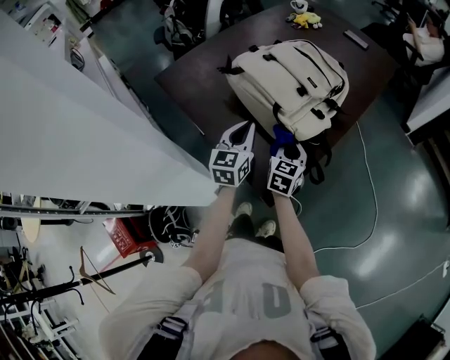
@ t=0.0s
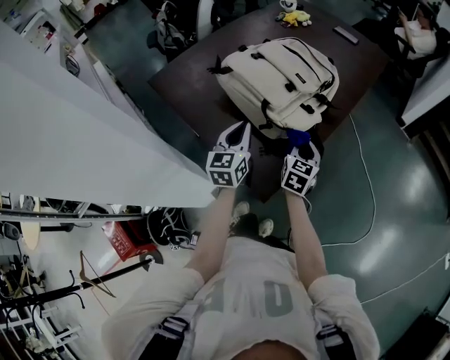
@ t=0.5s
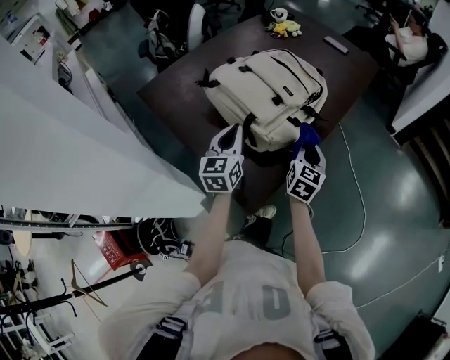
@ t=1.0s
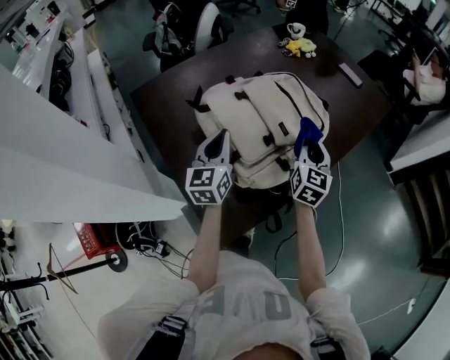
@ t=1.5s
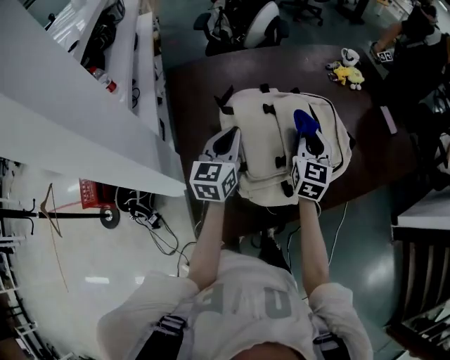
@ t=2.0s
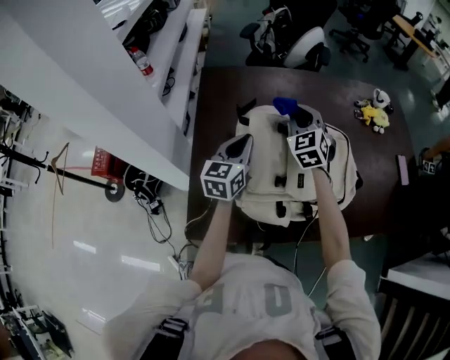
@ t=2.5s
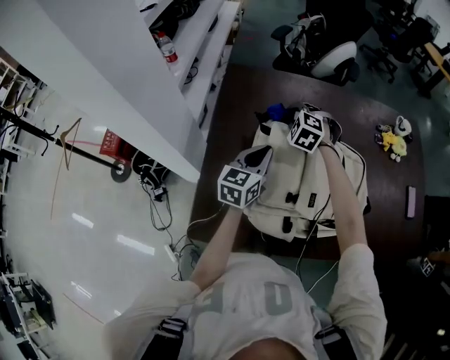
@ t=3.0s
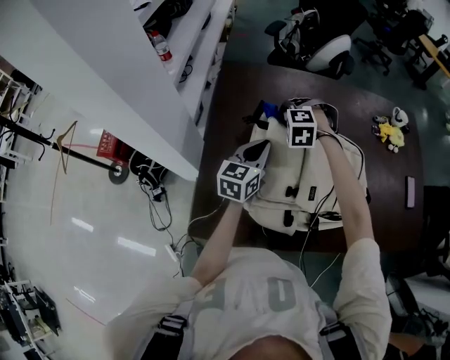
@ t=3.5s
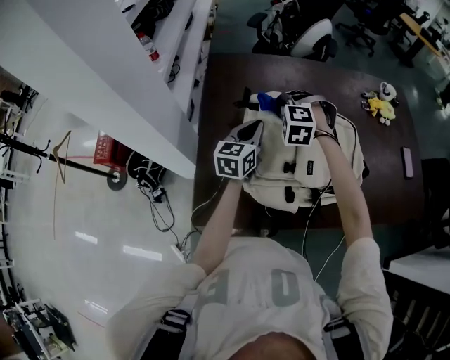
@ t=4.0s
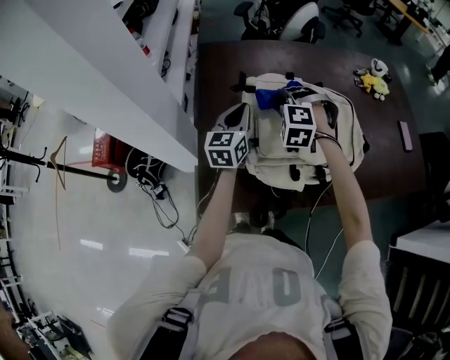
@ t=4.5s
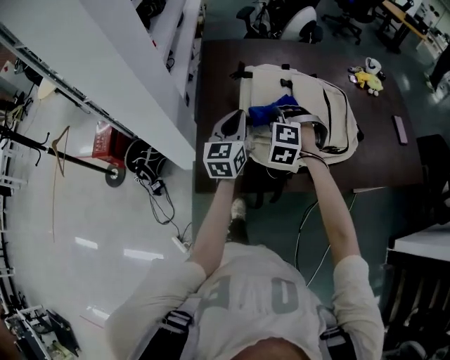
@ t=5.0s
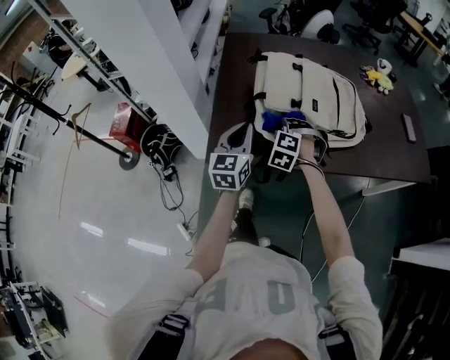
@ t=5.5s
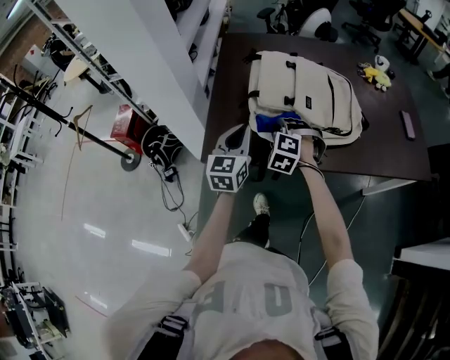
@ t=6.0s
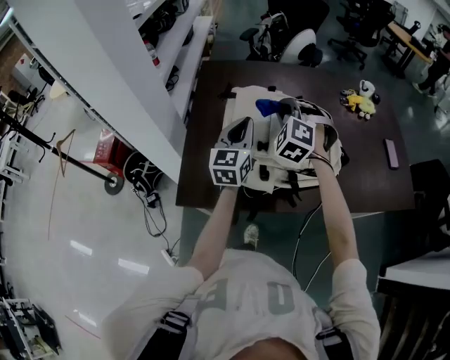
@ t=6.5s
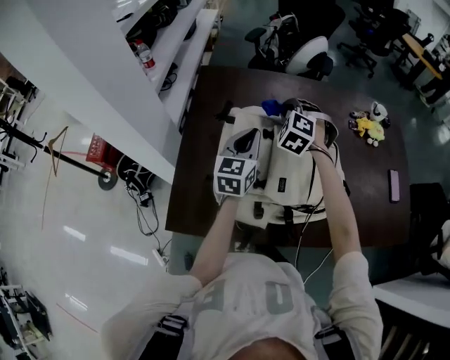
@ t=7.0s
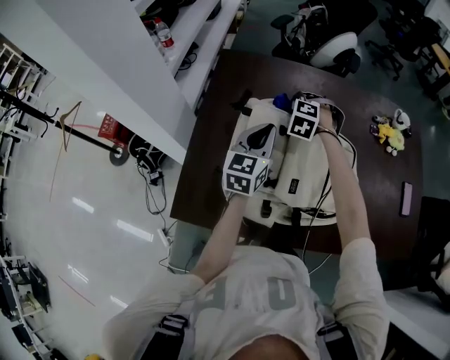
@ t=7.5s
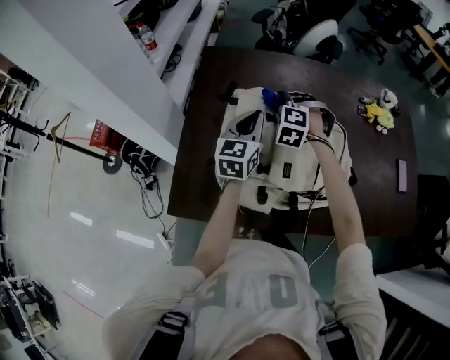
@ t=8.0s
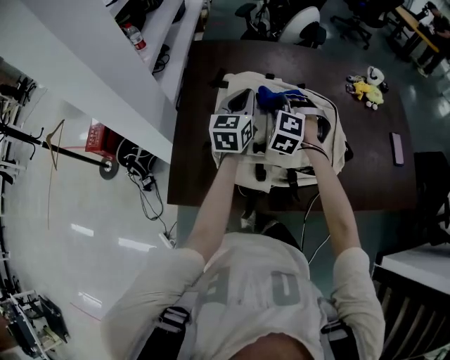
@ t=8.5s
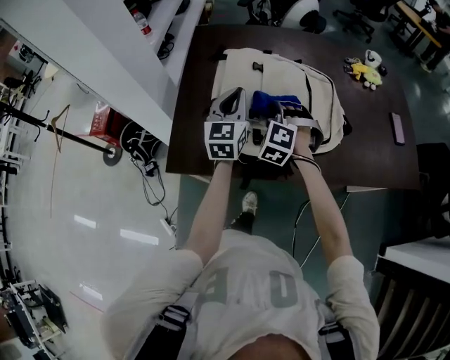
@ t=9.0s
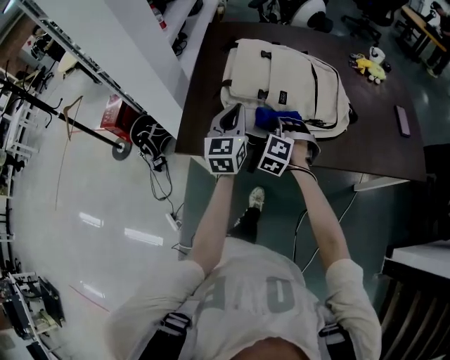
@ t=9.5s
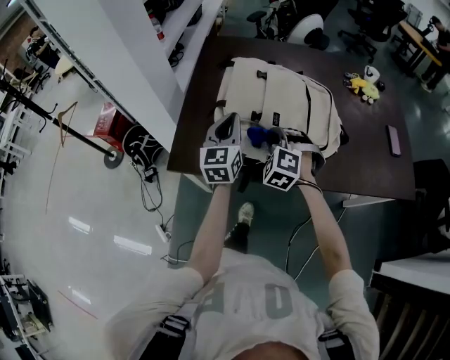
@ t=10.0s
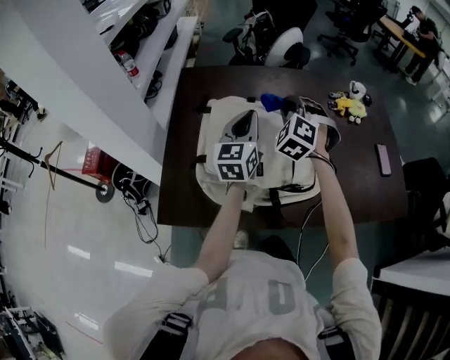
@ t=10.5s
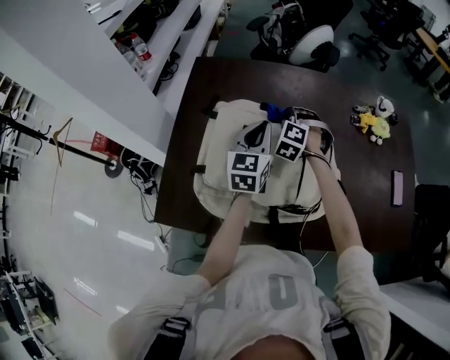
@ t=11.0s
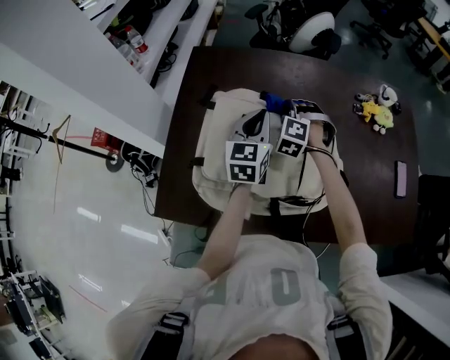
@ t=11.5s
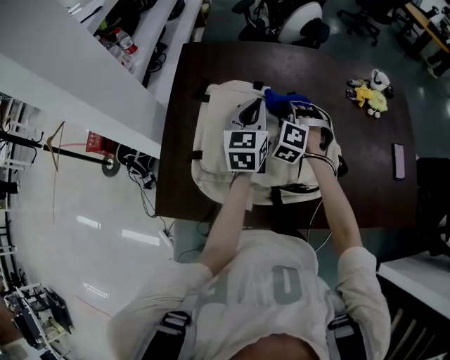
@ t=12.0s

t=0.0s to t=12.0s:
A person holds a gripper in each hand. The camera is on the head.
t=0.0s to t=2.0s: The right gripper changes place by roughly 30 cm, and changes its angle by about 40 degrees. The left gripper changes place by roughly 15 cm, and rotates approximately 30 degrees.
t=2.0s to t=4.0s: The right gripper changes place by approximately 20 cm, and rotates around the line of its fingers by about 90 degrees, counterclockwise from behind.
t=4.0s to t=6.0s: The grippers both shift backward by about 25 cm.
t=6.0s to t=8.0s: Both grippers travel together forward, approximately 30 cm.
t=8.0s to t=10.0s: Both grippers move backward, roughly 25 cm.
t=10.0s to t=12.0s: The right gripper moves forward, roughly 25 cm. Meanwhile the left gripper moves forward and to the right, approximately 25 cm.

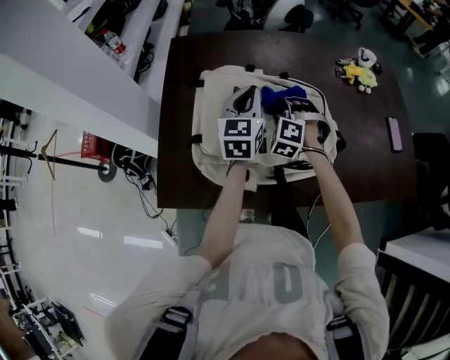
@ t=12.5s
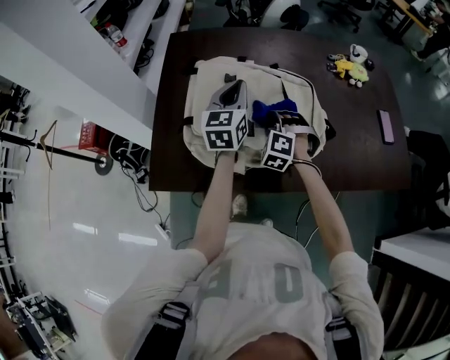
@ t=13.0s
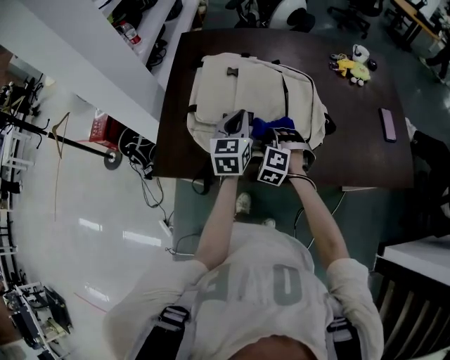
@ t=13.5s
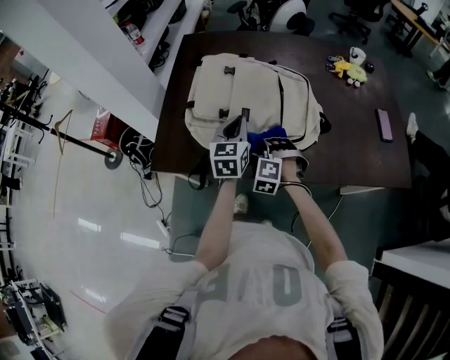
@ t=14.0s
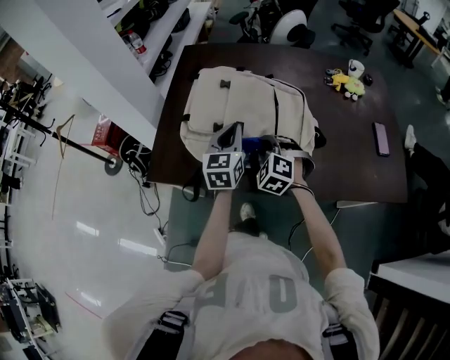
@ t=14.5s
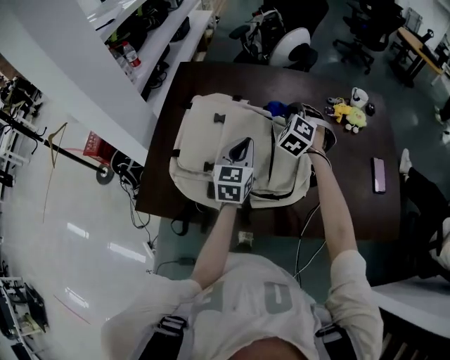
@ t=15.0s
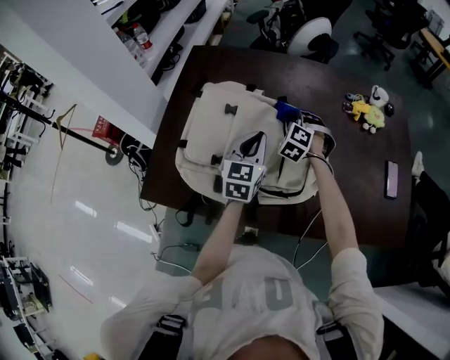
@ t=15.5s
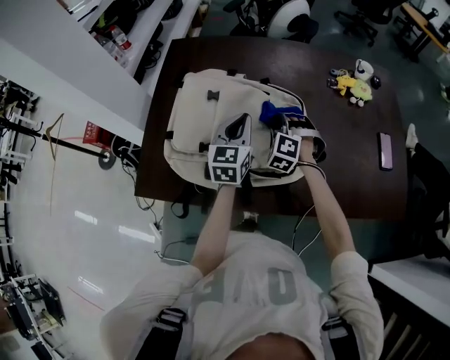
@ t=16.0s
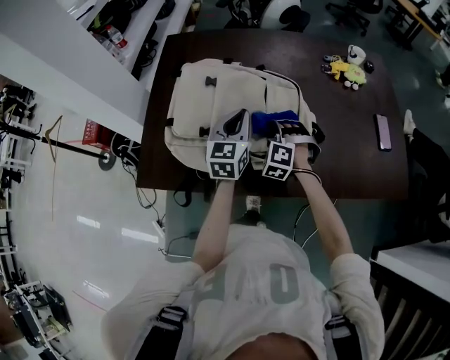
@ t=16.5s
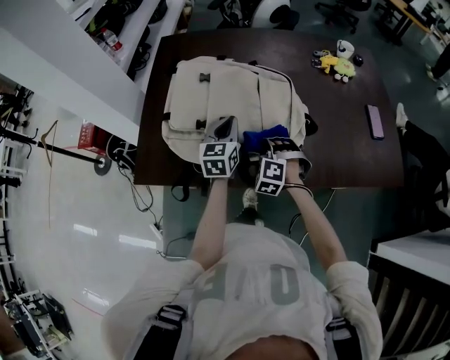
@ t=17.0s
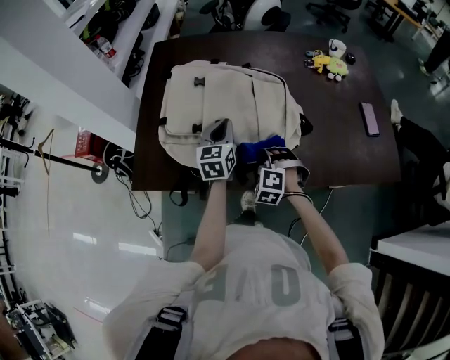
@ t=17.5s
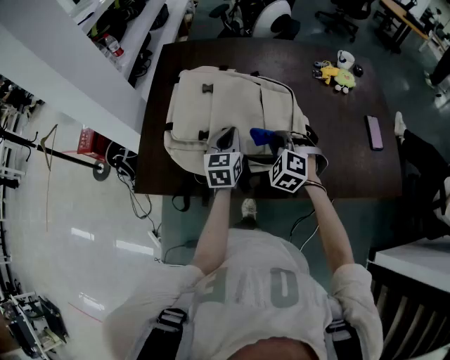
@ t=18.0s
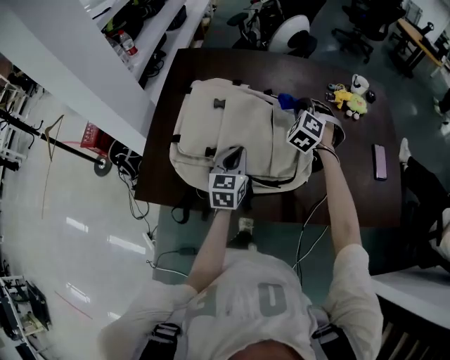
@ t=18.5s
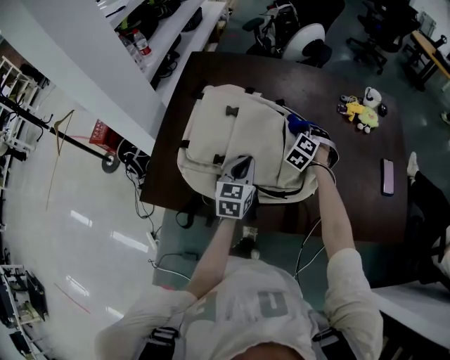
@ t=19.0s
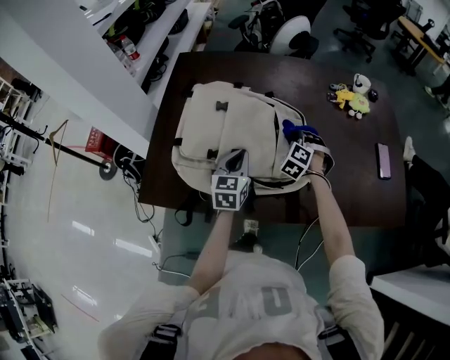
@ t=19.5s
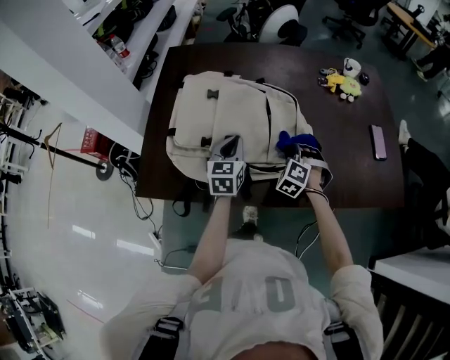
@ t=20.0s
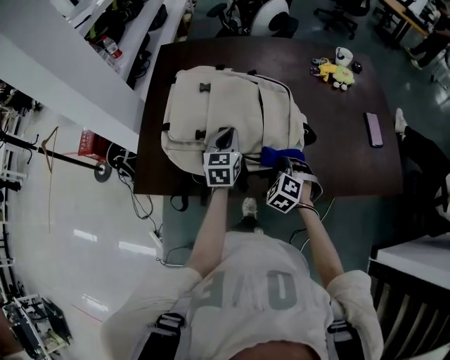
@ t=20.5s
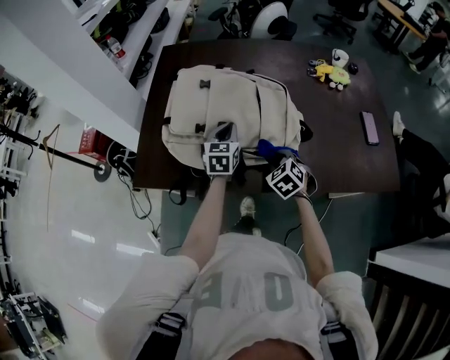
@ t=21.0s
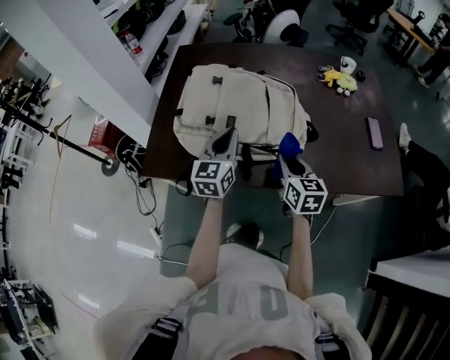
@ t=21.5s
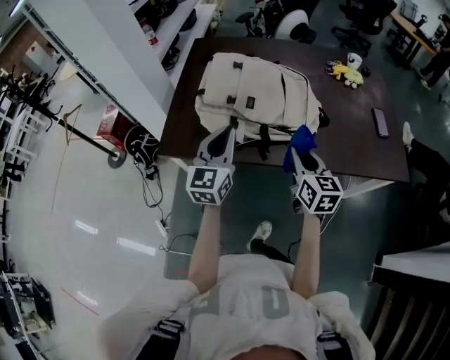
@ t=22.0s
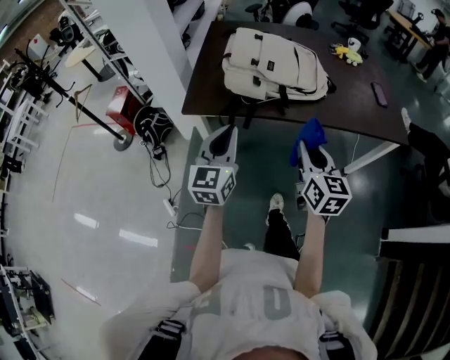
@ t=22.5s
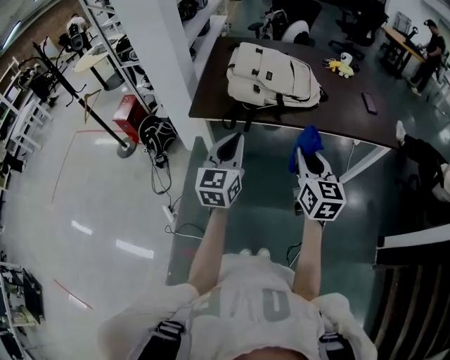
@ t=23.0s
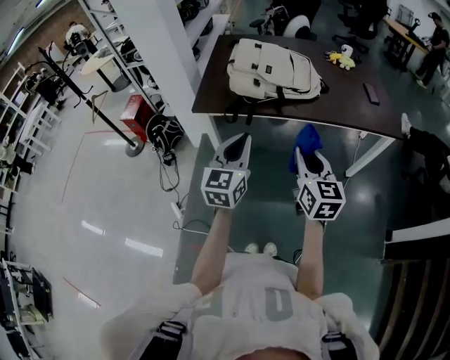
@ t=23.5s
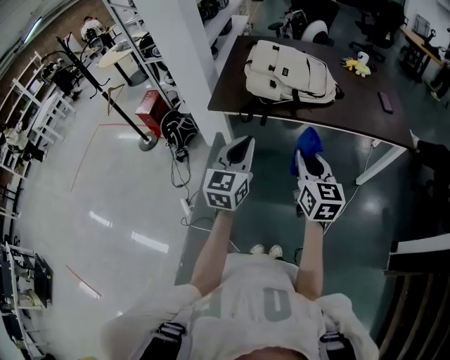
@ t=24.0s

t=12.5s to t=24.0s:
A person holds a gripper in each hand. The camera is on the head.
t=12.5s to t=14.5s: The grippers both shift backward by about 15 cm.
t=14.5s to t=16.5s: The left gripper travels forward and to the right by some 10 cm. Meanwhile the right gripper shifts some 5 cm to the right and downward, and travels forward and back again, roughly 25 cm each way.
t=16.5s to t=18.5s: The left gripper goes roughly 5 cm downward. The right gripper travels forward, upward and to the right by about 20 cm.
t=18.5s to t=20.0s: The right gripper goes some 20 cm backward and downward.
t=20.0s to t=22.0s: The two grippers go approximately 25 cm backward and upward. The left gripper swivels roughly 20 degrees; the right gripper rotates around the line of its fingers by roughly 70 degrees, clockwise from behind.
t=22.0s to t=24.0s: The two grippers go approximately 30 cm backward.

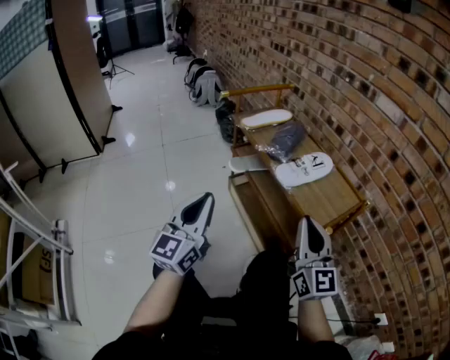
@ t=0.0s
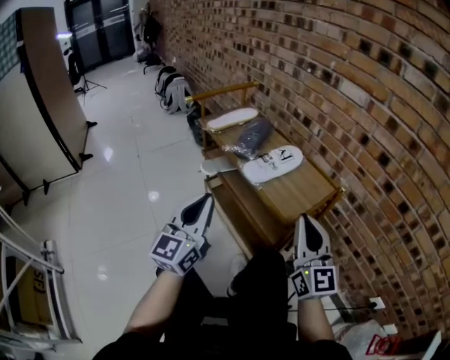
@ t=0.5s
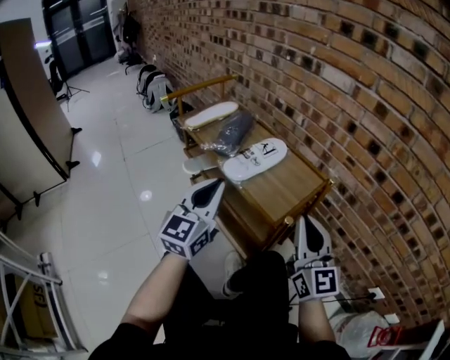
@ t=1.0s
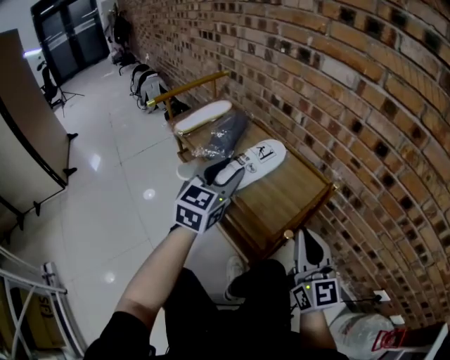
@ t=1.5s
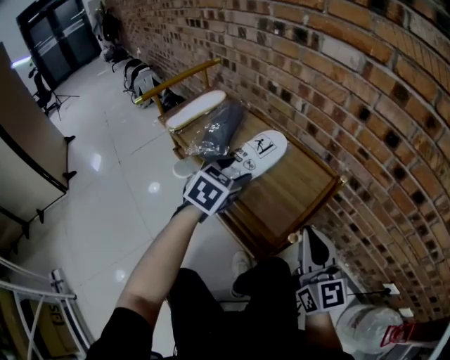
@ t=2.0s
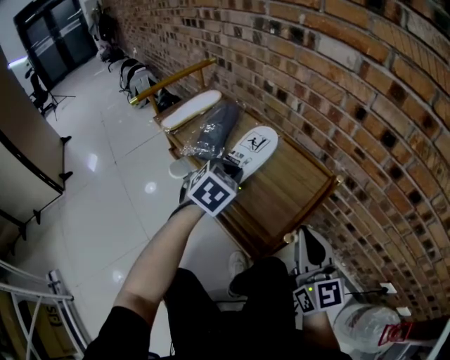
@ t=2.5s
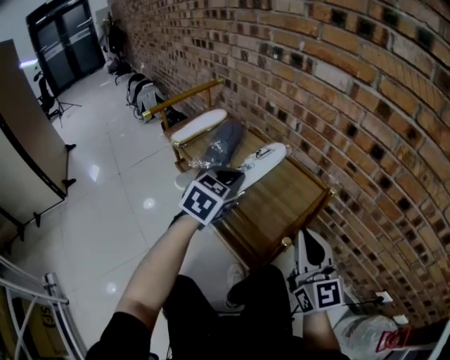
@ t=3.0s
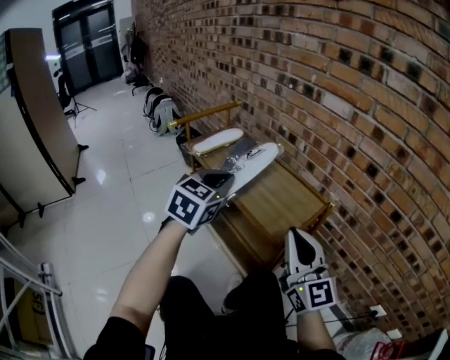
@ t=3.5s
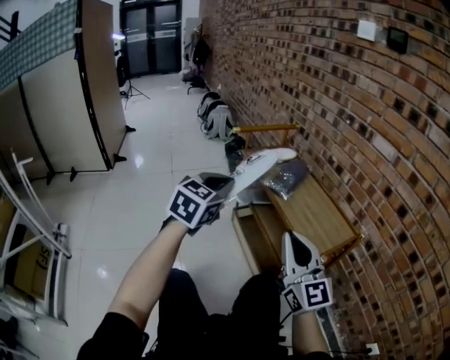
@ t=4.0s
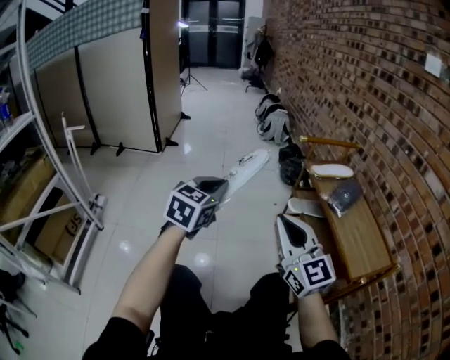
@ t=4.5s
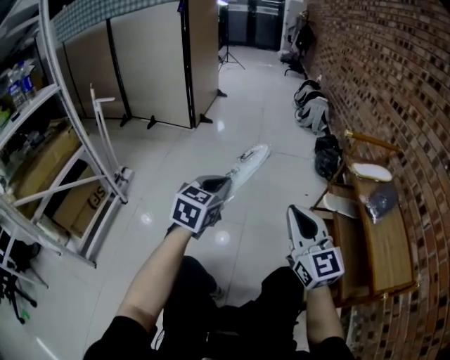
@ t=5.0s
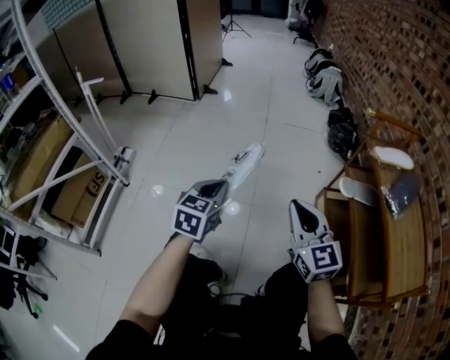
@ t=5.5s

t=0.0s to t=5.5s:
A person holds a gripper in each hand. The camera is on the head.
t=0.0s to t=2.0s: The right gripper goes approximately 10 cm to the right. Meanwhile the left gripper travels forward and to the right by approximately 30 cm, angles its fingers downward, by roughly 50 degrees, and opens up.
t=2.0s to t=3.5s: The right gripper moves upward and to the left, about 10 cm, while the left gripper goes approximately 15 cm upward and backward, and closes its fingers.
t=3.5s to t=5.5s: The pair of grippers is taken approximately 50 cm. The left gripper changes its angle by some 60 degrees; the right gripper changes its angle by approximately 50 degrees.
